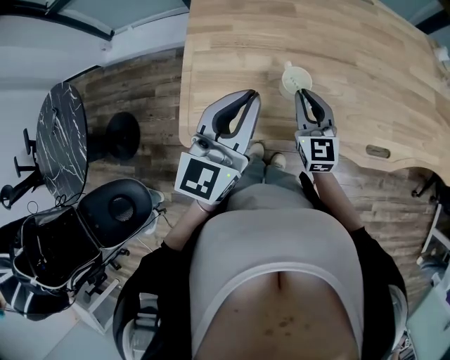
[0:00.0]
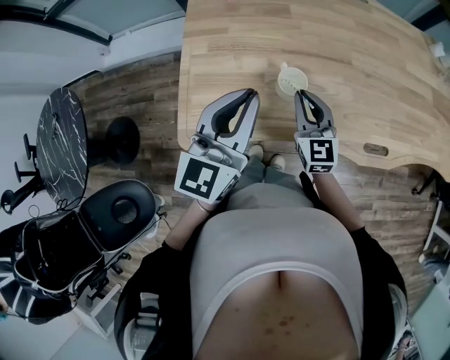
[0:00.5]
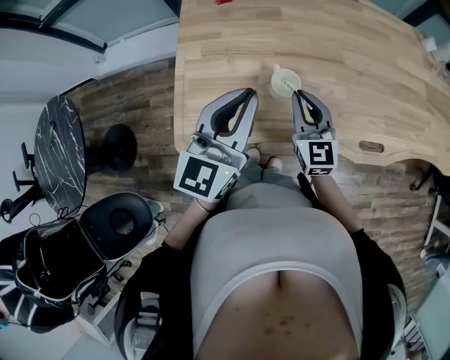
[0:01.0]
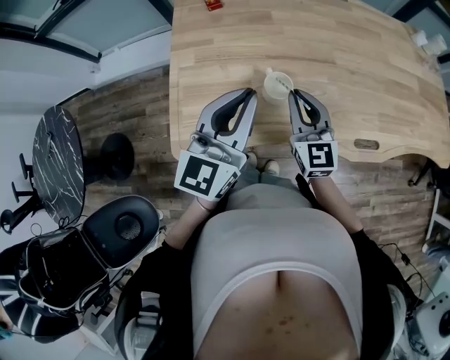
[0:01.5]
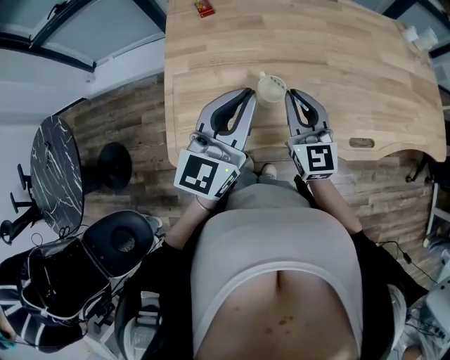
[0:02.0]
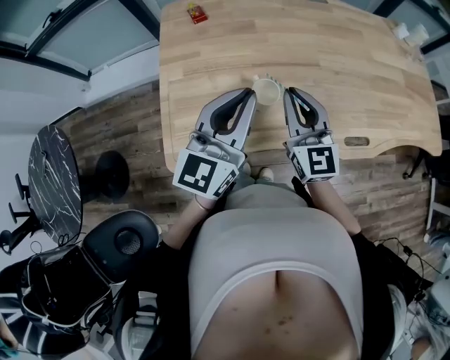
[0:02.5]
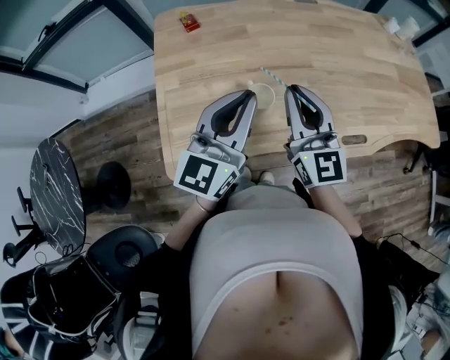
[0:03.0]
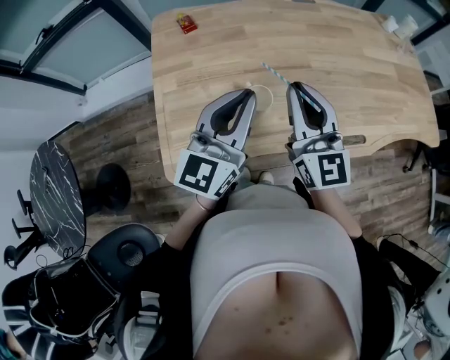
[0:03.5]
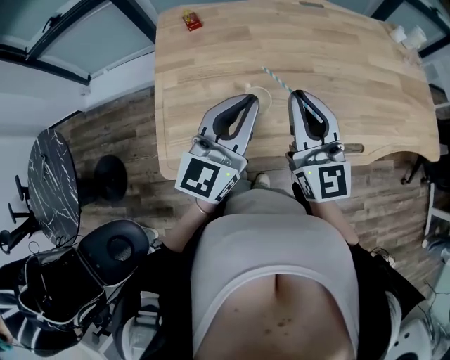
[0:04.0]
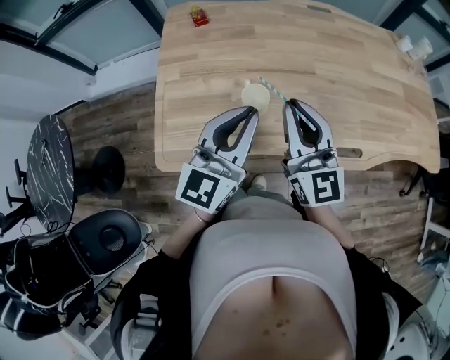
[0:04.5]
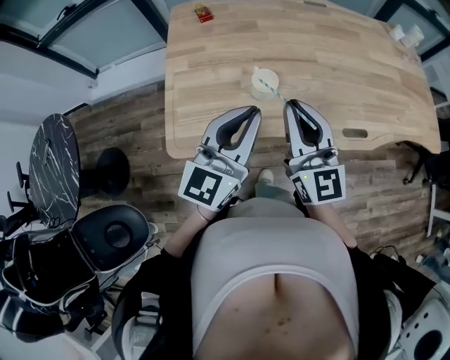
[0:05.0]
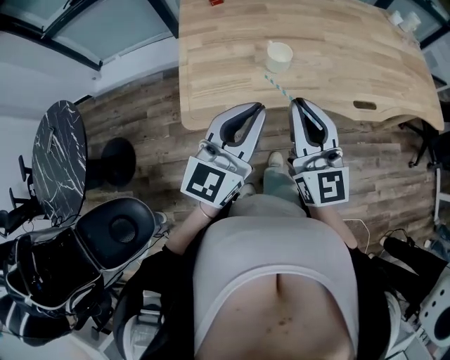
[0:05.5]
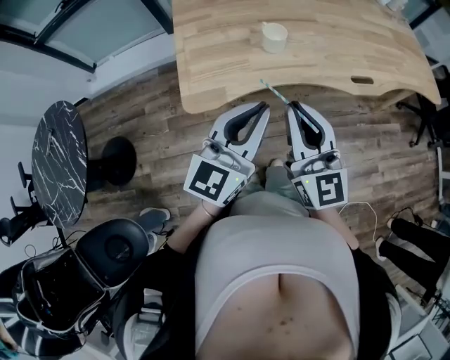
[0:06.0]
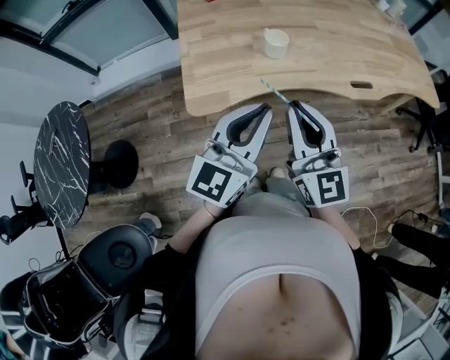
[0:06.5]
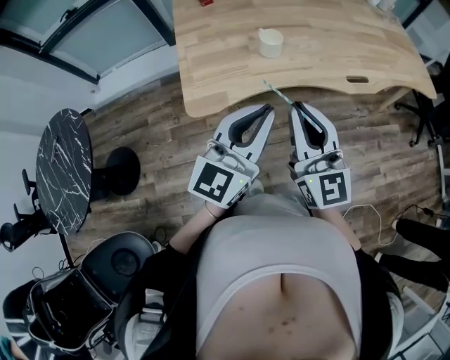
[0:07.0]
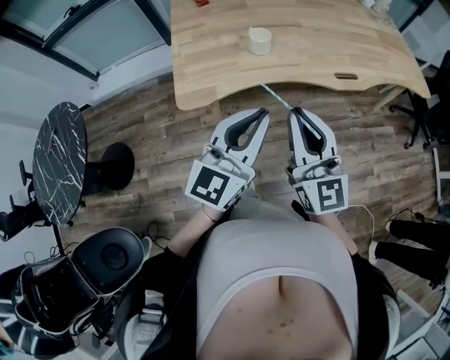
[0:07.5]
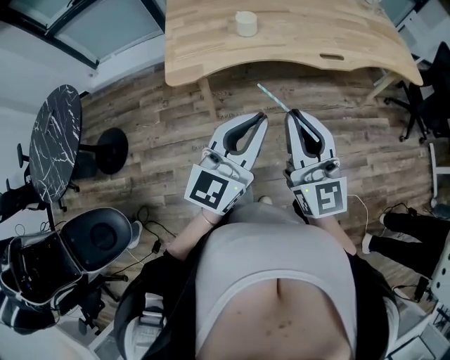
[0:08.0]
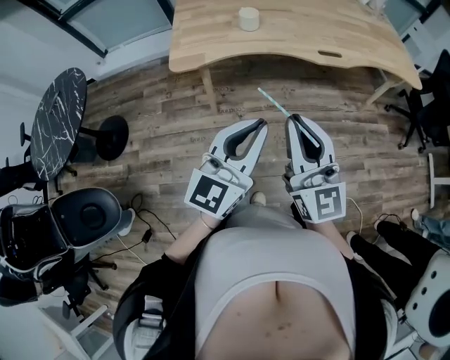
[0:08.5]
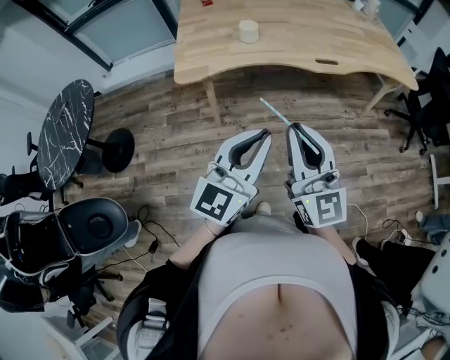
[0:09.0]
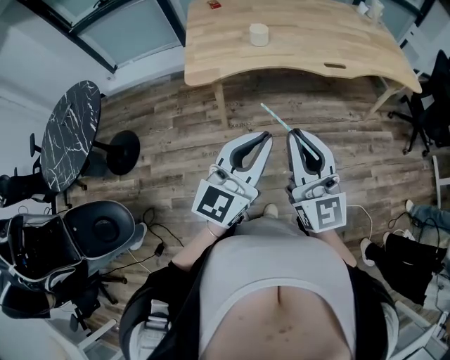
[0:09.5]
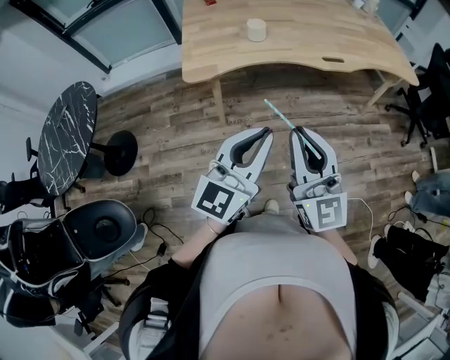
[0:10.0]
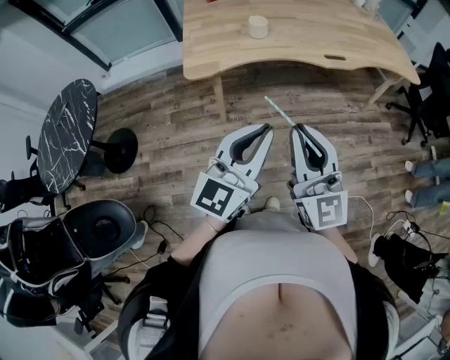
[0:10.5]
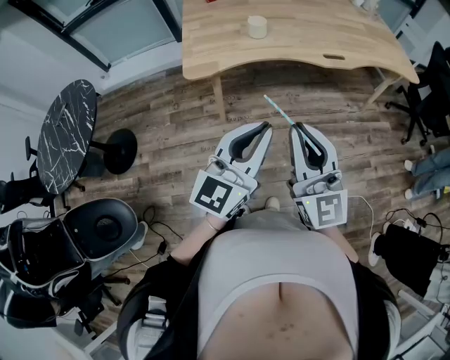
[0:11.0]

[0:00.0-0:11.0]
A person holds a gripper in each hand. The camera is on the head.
0.0 to 2.0 s: The right gripper goes some 10 cm upward.
2.0 to 3.5 s: The right gripper goes roughly 10 cm upward.
3.5 to 5.5 s: The two grippers go some 20 cm backward.
5.5 to 7.5 s: The right gripper moves backward, about 15 cm; the left gripper goes some 15 cm backward and to the right.
7.5 to 9.0 s: The grippers both shift backward and to the right by approximately 20 cm.
9.0 to 11.0 s: Both grippers move to the left, about 5 cm.

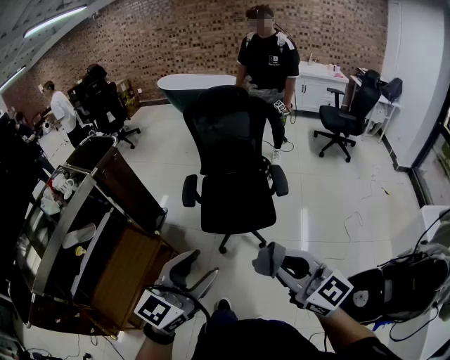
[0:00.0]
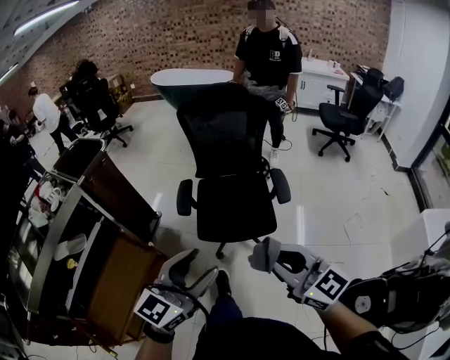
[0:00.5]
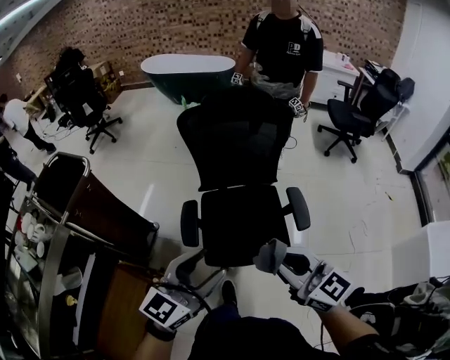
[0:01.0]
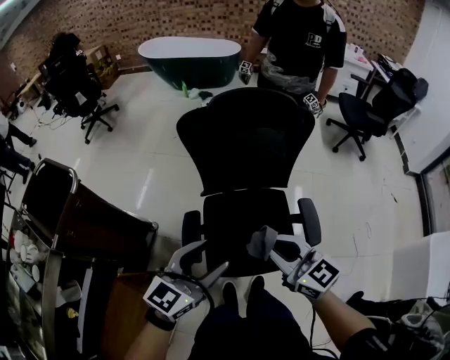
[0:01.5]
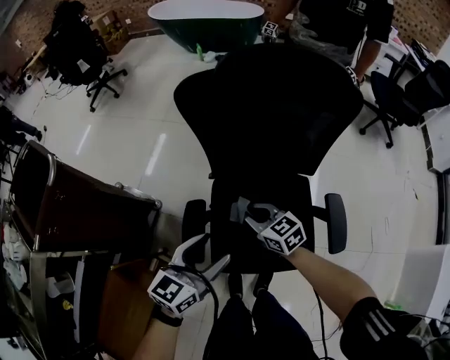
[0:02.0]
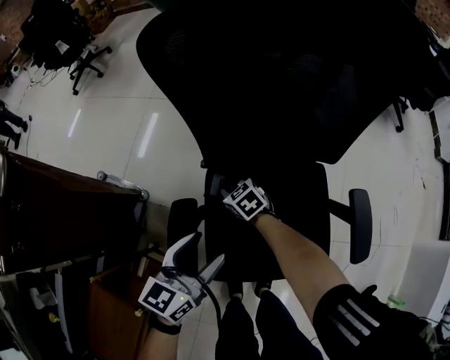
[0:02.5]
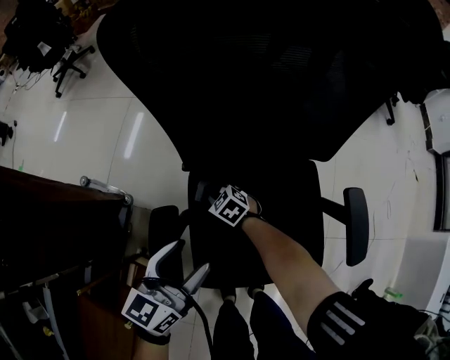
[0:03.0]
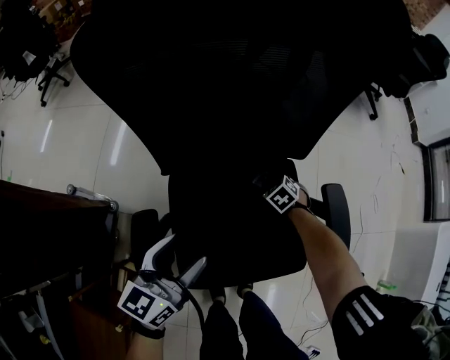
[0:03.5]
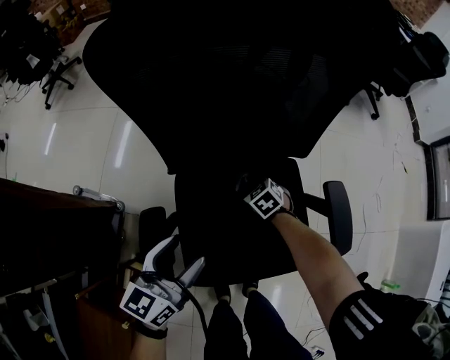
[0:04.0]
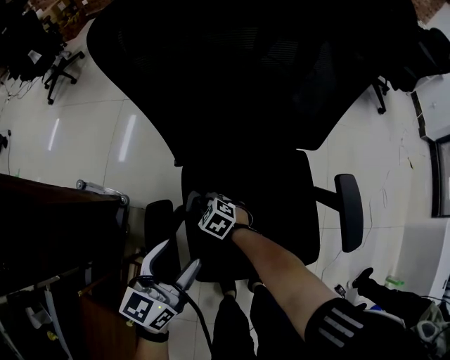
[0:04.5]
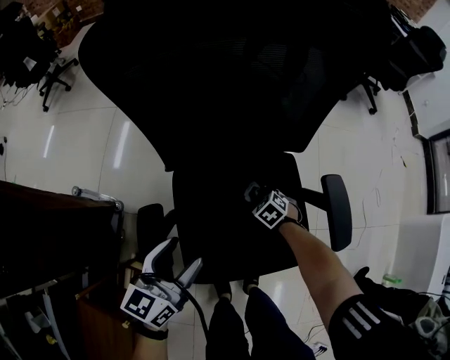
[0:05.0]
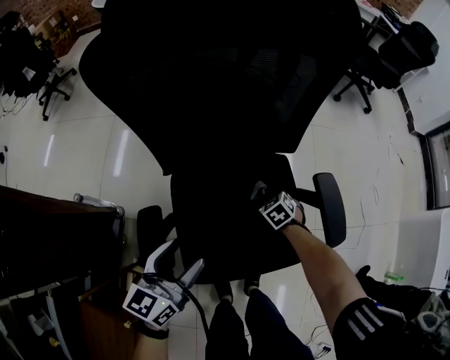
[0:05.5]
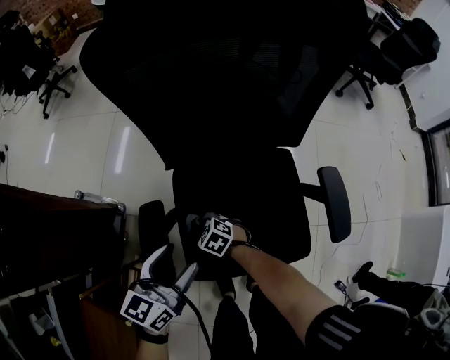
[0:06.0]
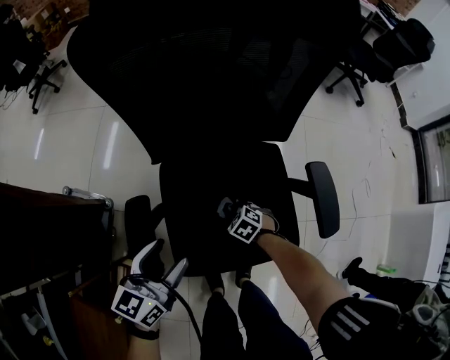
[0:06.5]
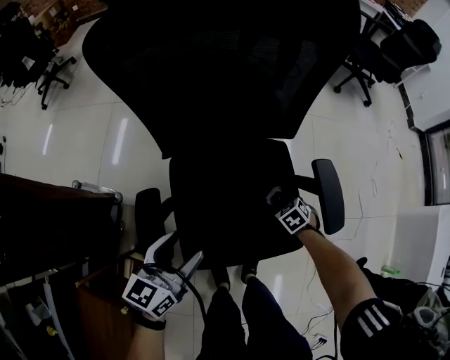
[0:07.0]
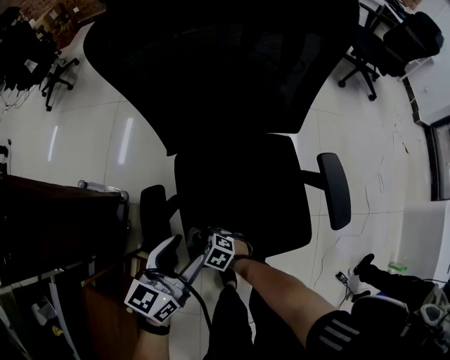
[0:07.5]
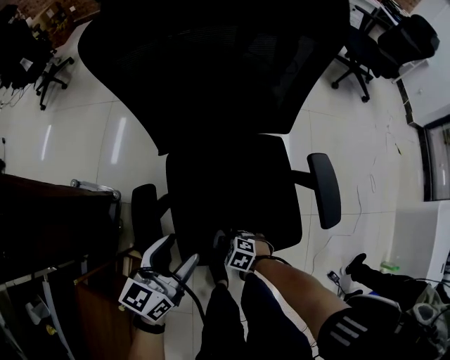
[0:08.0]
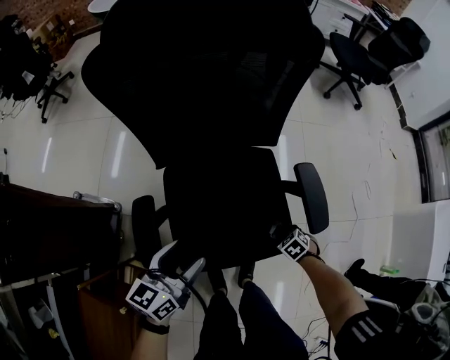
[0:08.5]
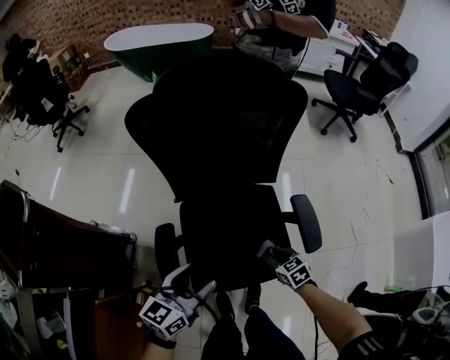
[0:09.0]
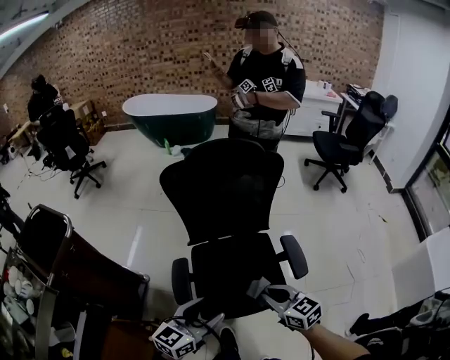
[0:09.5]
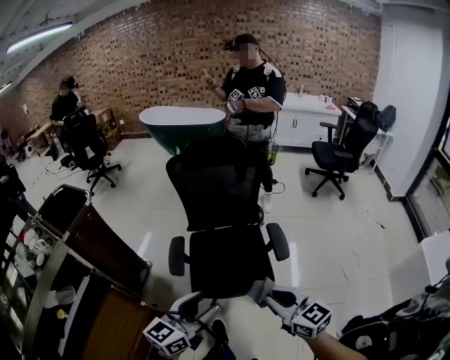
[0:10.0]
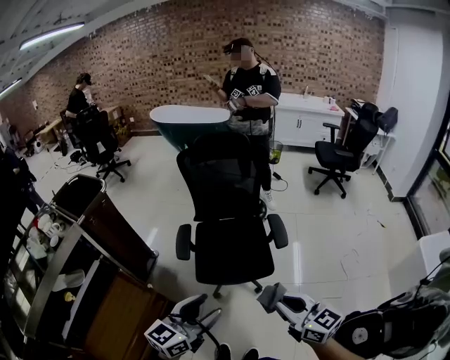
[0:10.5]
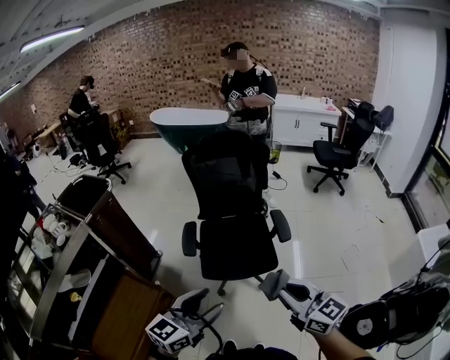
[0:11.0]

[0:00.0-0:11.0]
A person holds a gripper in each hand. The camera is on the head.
0.0 to 2.0 s: The two grippers travel together, forward, roughly 60 cm. Both grippers travel together downward, roughly 35 cm. The left gripper turns by approximately 30 degrees, while the right gripper tips its fingers downward by about 30 degrees.
2.0 to 3.5 s: The right gripper is displaced downward and to the right by some 40 cm, and angles its fingers downward, by approximately 40 degrees; the left gripper travels downward and forward by approximately 15 cm.
3.5 to 5.5 s: The right gripper moves backward, roughly 5 cm, and moves roughly 30 cm to the left and comes back.
5.5 to 7.5 s: The right gripper shifts by approximately 35 cm, and swivels about 30 degrees.
7.5 to 9.0 s: The right gripper changes place by some 30 cm, and turns by some 30 degrees, while the left gripper is displaced upward by about 10 cm.
9.0 to 11.0 s: The two grippers travel together, backward, about 40 cm. The right gripper goes some 50 cm upward, and points its fingers some 50 degrees further upward; the left gripper travels upward by approximately 25 cm.

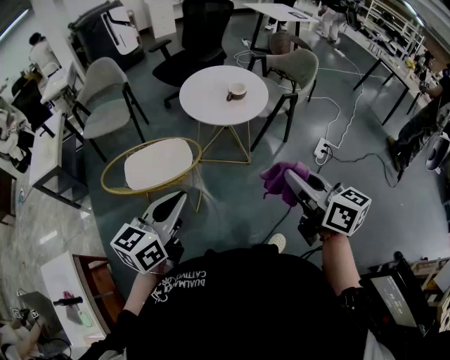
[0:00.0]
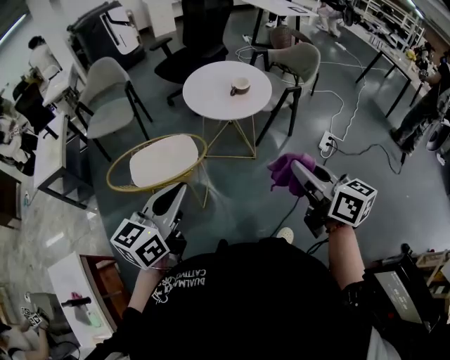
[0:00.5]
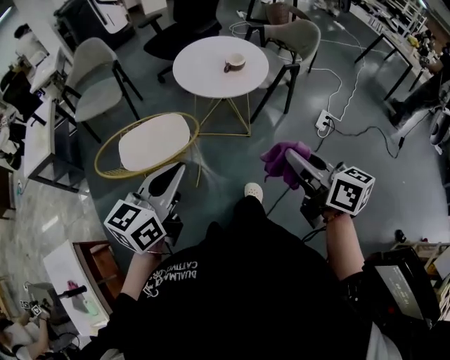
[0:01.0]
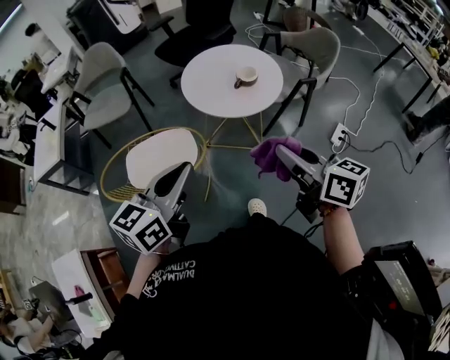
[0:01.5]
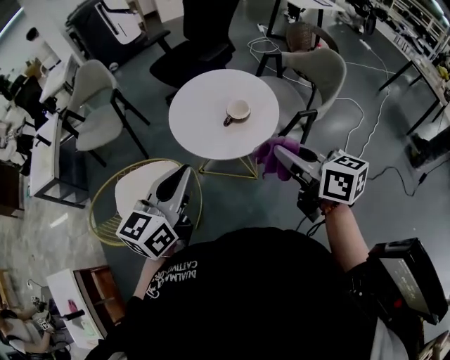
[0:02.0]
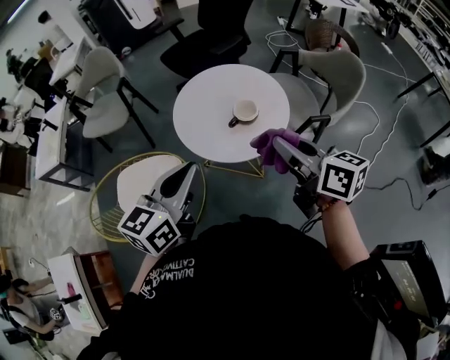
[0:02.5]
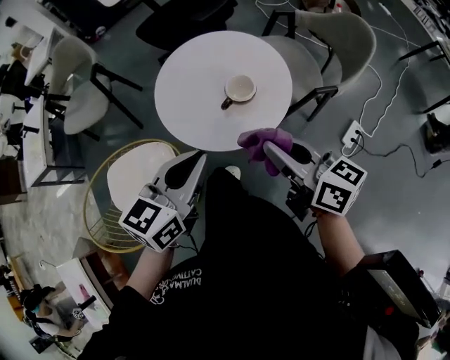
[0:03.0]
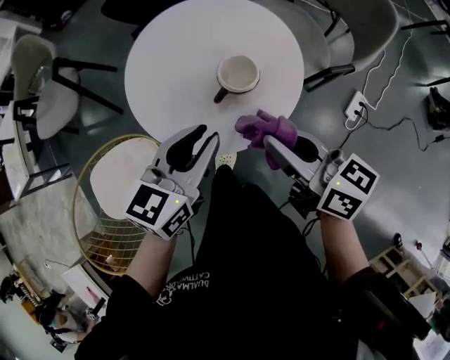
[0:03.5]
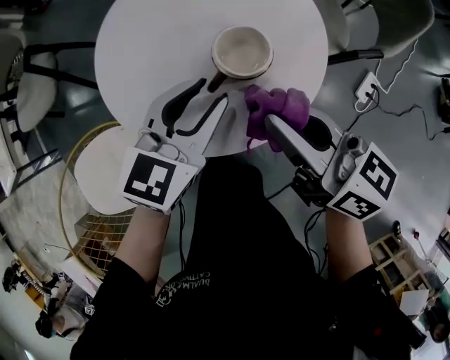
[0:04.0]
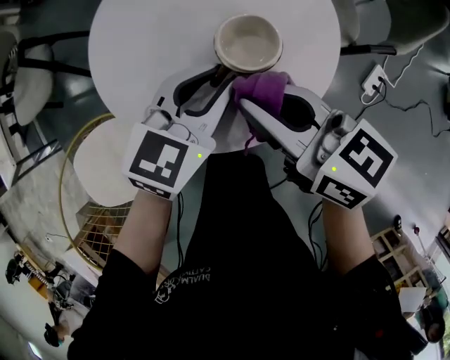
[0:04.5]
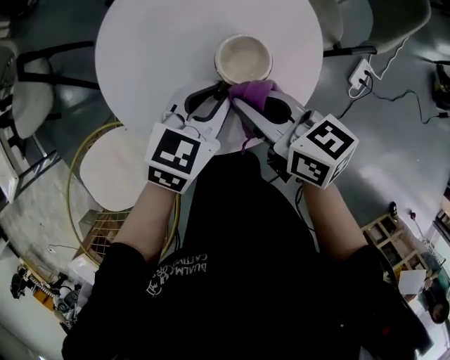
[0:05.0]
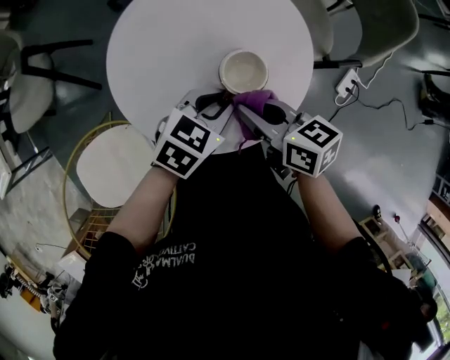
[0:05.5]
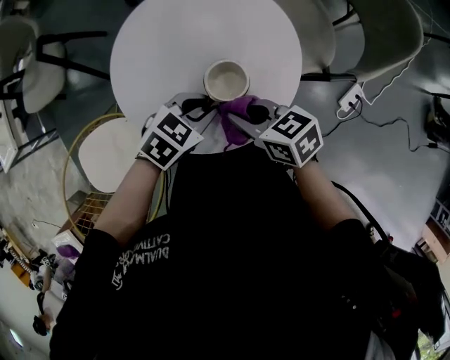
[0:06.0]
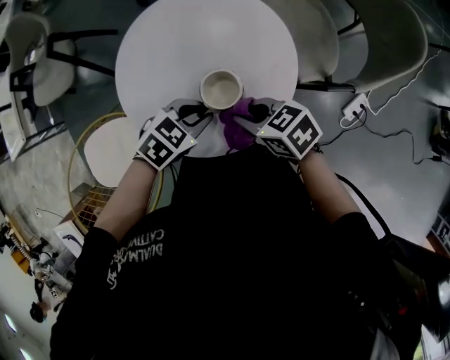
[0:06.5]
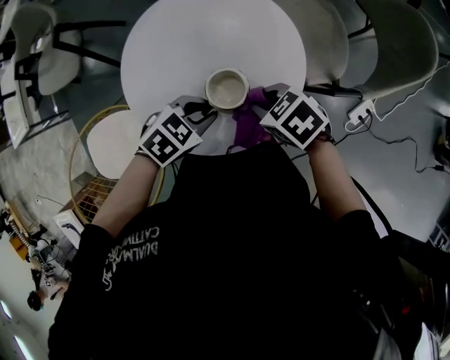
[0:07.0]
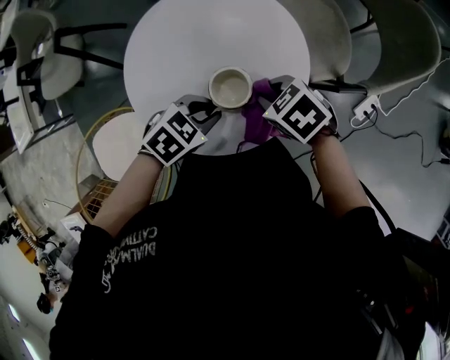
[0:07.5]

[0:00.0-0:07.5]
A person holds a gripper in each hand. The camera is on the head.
0.0 to 2.0 s: The grippers both shift forward by roughly 35 cm.
2.0 to 4.0 s: The right gripper moves forward and downward, approximately 30 cm; the left gripper moves forward, downward and to the right, approximately 40 cm, swivels approximately 30 degrees, and opens.
4.0 to 5.5 s: The right gripper travels downward by approximately 5 cm, and turns by approximately 20 degrees. The left gripper turns by approximately 30 degrees.
5.5 to 7.5 s: The right gripper ends up about 10 cm from where it was, and tips its fingers downward by approximately 30 degrees.
